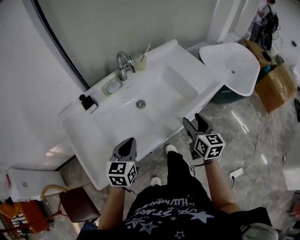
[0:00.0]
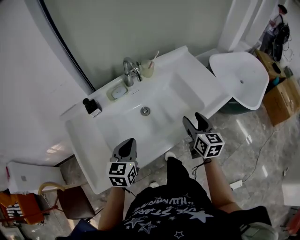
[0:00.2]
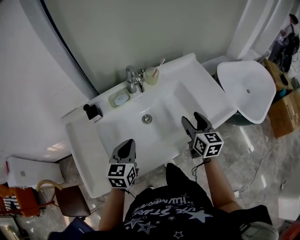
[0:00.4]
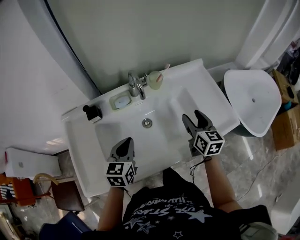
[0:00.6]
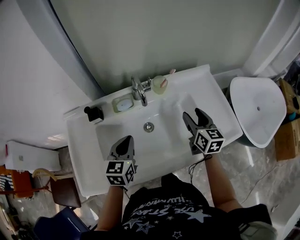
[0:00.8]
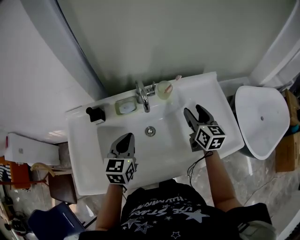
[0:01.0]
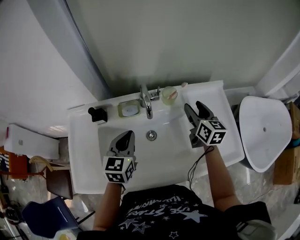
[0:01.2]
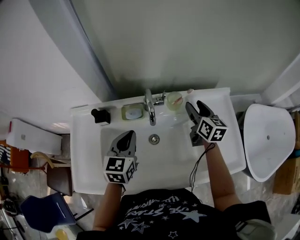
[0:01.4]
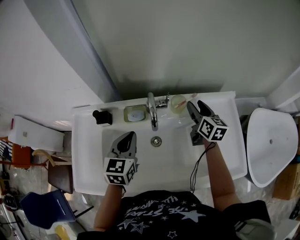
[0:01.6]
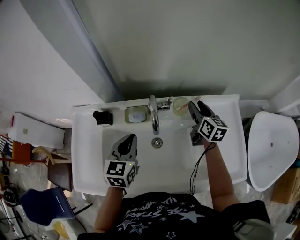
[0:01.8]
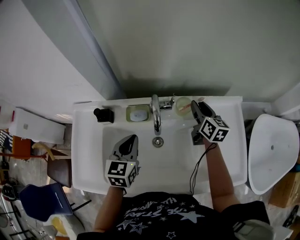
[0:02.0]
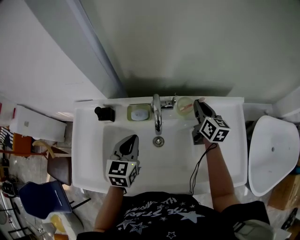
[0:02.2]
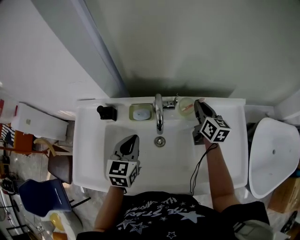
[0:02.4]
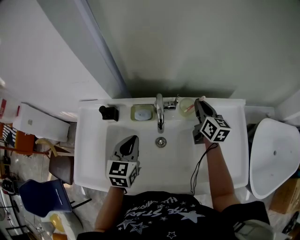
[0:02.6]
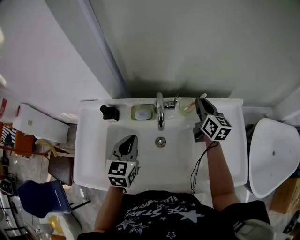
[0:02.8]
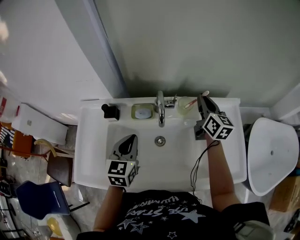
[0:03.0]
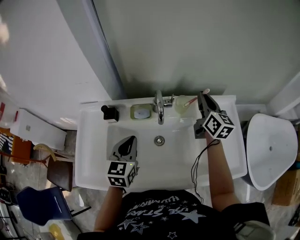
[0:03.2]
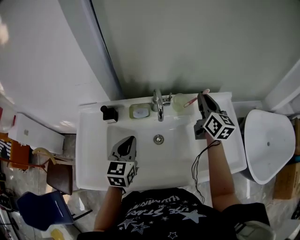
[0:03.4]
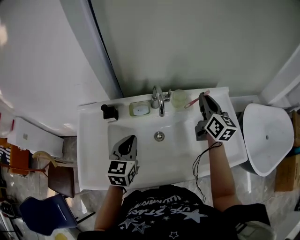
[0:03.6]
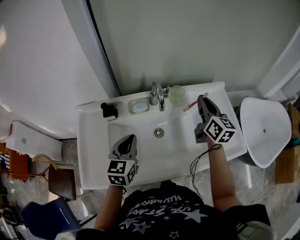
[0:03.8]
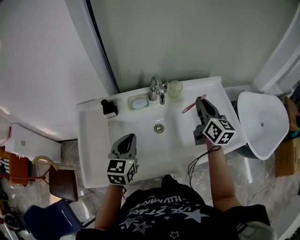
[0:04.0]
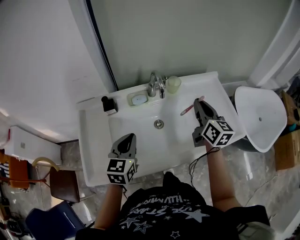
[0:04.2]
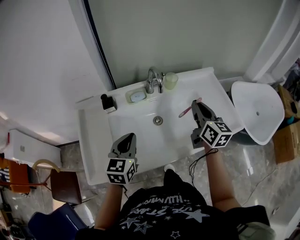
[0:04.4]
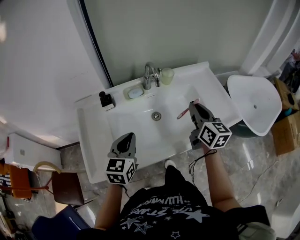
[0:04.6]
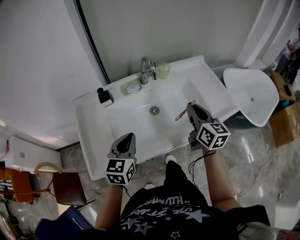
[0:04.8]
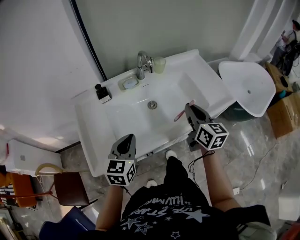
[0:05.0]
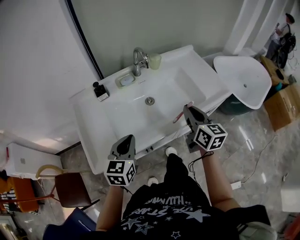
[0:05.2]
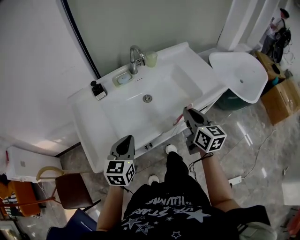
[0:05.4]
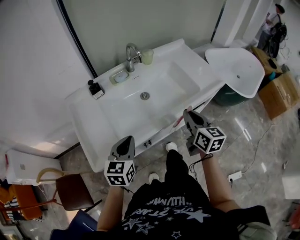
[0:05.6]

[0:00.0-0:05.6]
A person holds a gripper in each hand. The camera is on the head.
0:00.0 to 0:01.4: The left gripper moves roughly 25 cm, and rotates some 30 degrees; the right gripper shifts by approximately 40 cm, and turns by some 30 degrees.
0:01.4 to 0:02.8: The right gripper travels forward by about 5 cm, and closes.
0:02.8 to 0:04.2: The right gripper is displaced backward by approximately 25 cm; the left gripper travels backward by some 10 cm.
0:04.2 to 0:05.6: The left gripper is displaced backward by about 20 cm; the right gripper moves backward, approximately 25 cm.

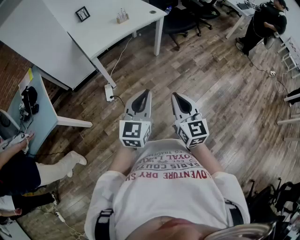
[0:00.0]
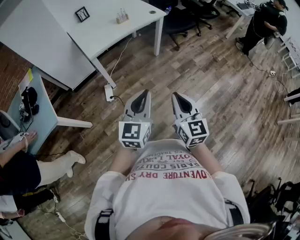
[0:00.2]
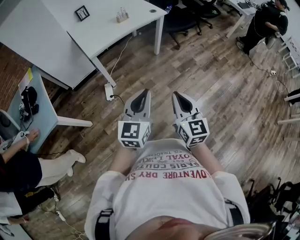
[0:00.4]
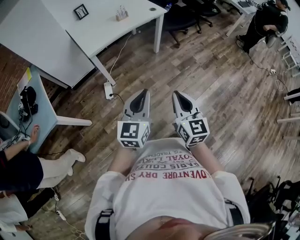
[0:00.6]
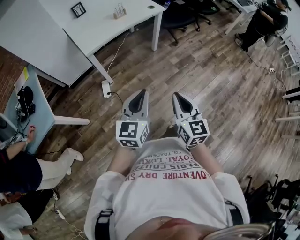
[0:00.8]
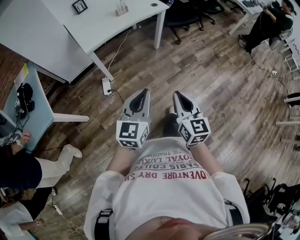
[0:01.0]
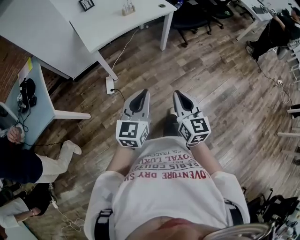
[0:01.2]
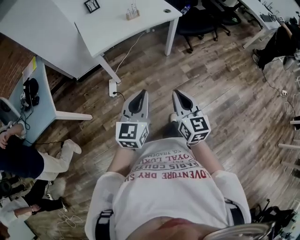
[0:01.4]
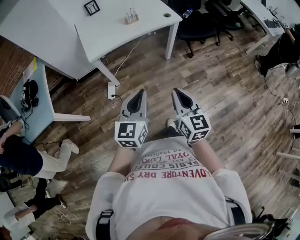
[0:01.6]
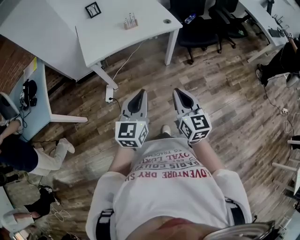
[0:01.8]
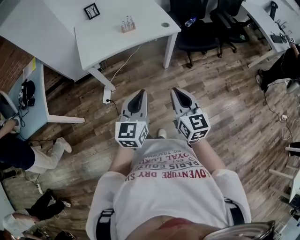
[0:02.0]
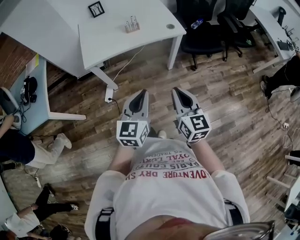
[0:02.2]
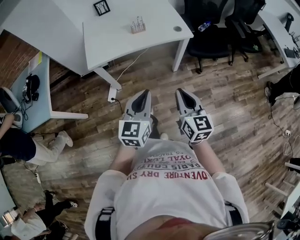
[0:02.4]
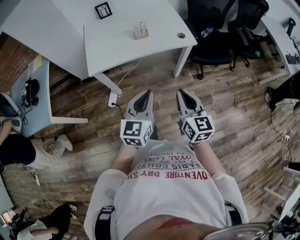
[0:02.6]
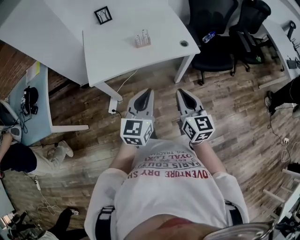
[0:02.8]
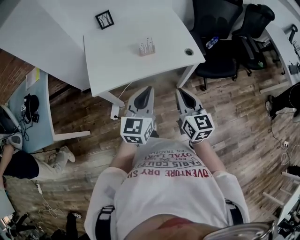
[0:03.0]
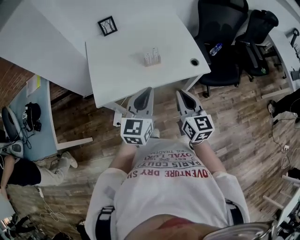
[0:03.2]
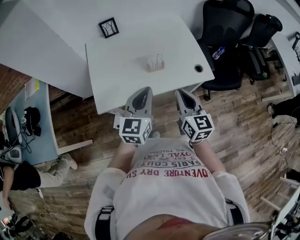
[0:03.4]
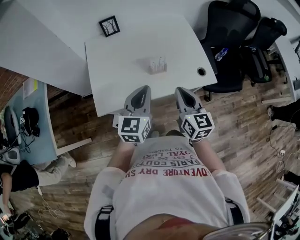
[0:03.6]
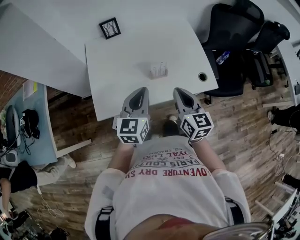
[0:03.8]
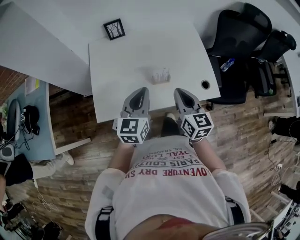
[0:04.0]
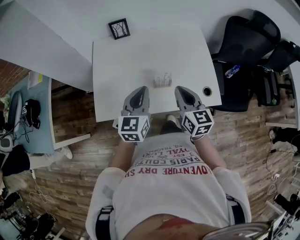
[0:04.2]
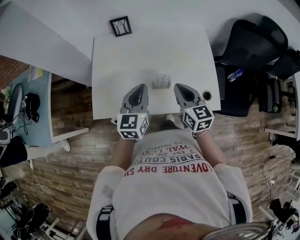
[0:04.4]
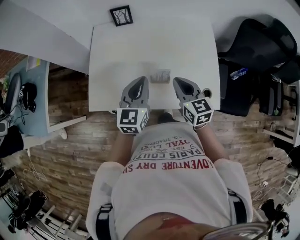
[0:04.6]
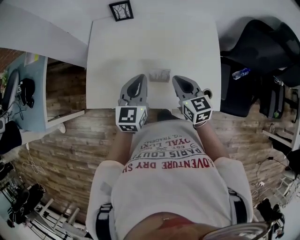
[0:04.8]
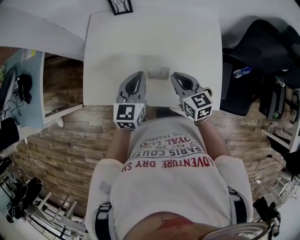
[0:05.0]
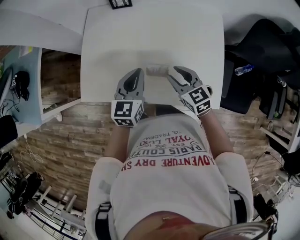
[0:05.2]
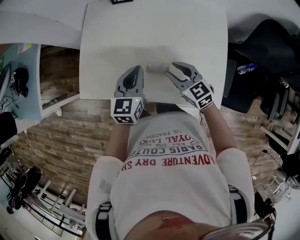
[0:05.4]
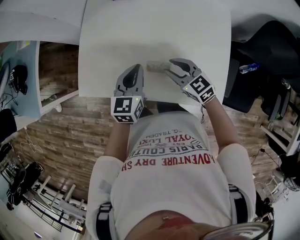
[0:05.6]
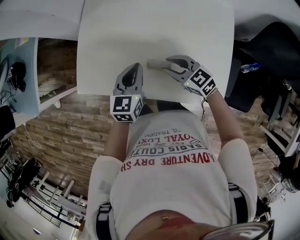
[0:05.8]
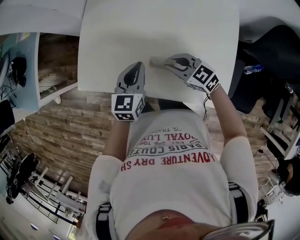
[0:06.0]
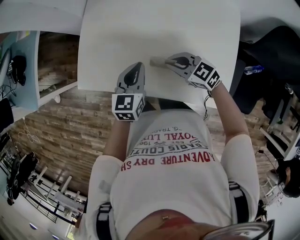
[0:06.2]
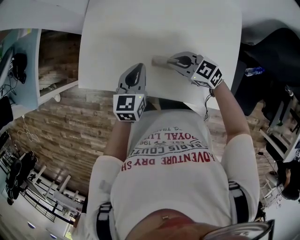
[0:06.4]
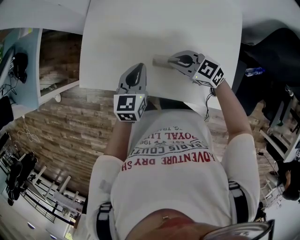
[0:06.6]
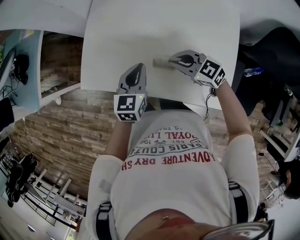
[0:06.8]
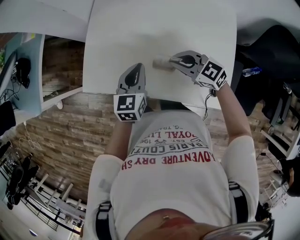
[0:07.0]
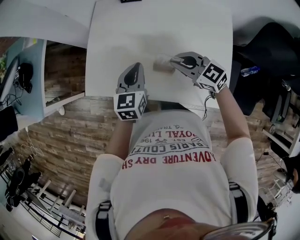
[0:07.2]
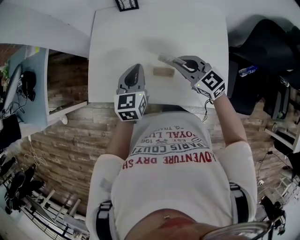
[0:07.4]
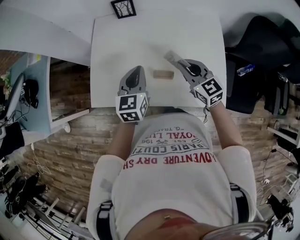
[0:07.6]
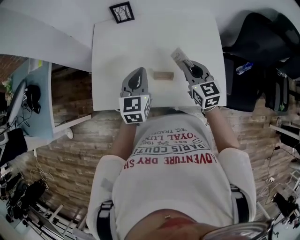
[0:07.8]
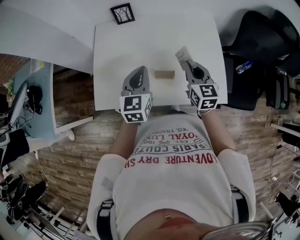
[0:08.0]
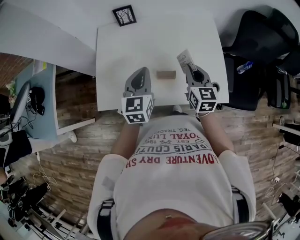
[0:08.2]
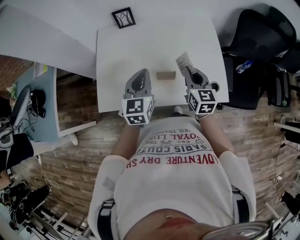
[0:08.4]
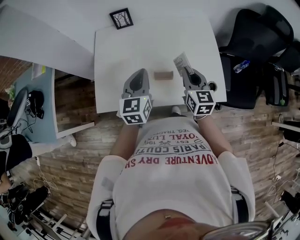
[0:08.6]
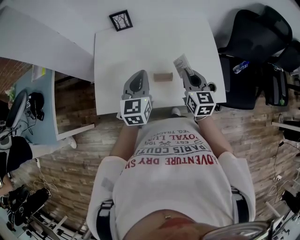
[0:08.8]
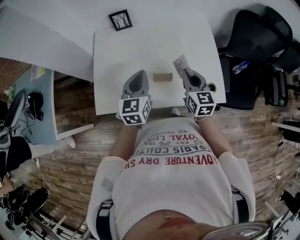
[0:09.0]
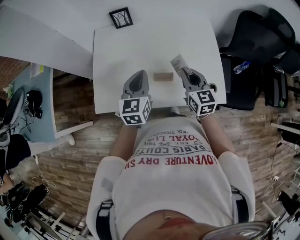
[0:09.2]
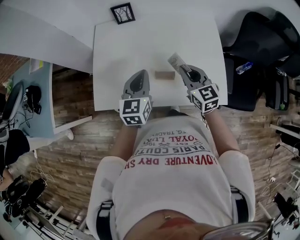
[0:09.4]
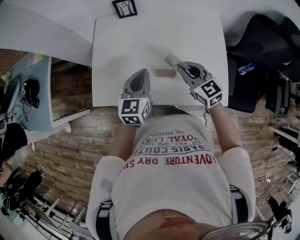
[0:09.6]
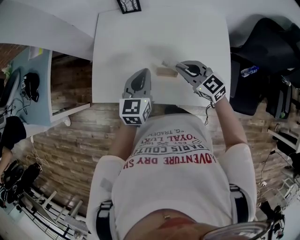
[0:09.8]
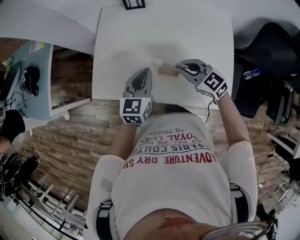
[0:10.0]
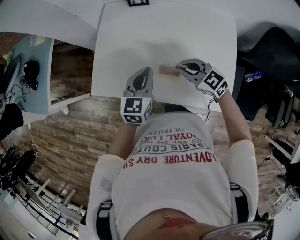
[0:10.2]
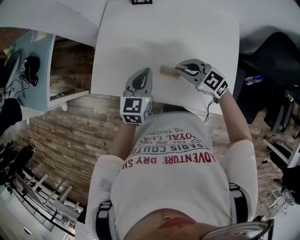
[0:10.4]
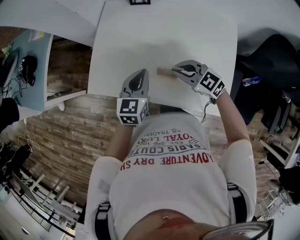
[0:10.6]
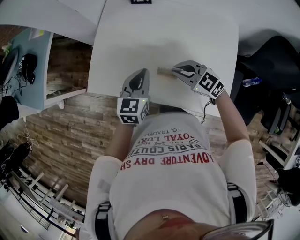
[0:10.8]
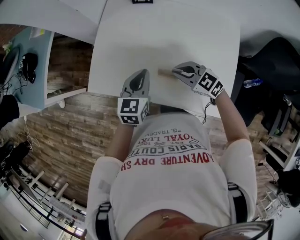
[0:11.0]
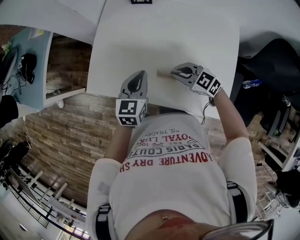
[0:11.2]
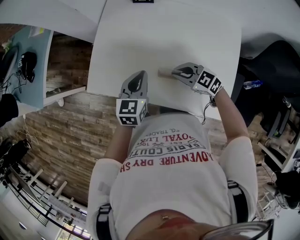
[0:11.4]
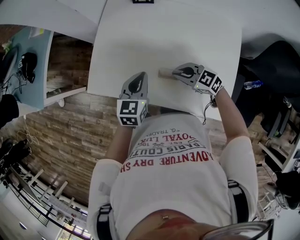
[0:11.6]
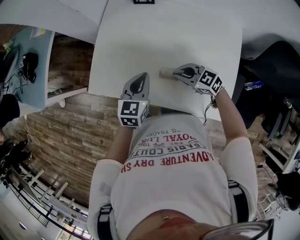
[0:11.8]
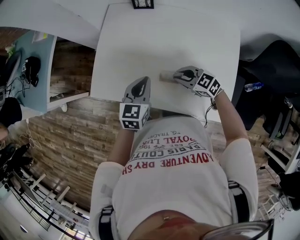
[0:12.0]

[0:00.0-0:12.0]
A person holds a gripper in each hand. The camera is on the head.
0:00.0 to 0:01.6: The left gripper moves forward, roughly 15 cm. Meanwhile the right gripper moves forward and to the right, some 20 cm.
0:01.6 to 0:03.0: Both grippers travel together forward, roughly 35 cm.
0:03.0 to 0:04.4: Both grippers travel together forward, approximately 30 cm. The right gripper rotates some 20 degrees.
0:04.4 to 0:06.0: The grippers both shift downward by approximately 15 cm. The right gripper swivels roughly 60 degrees.
0:06.0 to 0:07.6: The grippers both shift upward by about 10 cm. The right gripper turns by about 40 degrees.
0:07.6 to 0:09.0: The right gripper changes place by about 5 cm, and swivels approximately 30 degrees.
0:09.0 to 0:10.4: The left gripper shifts about 5 cm downward. Meanwhile the right gripper shifts by about 10 cm, and swivels about 70 degrees.
0:10.4 to 0:12.0: The right gripper moves downward, about 5 cm.

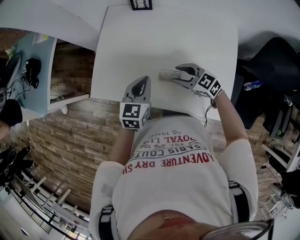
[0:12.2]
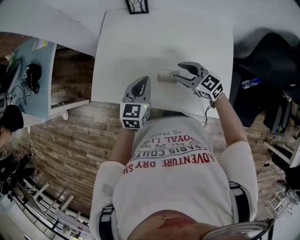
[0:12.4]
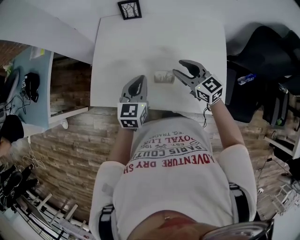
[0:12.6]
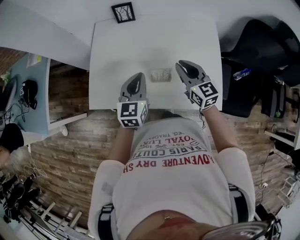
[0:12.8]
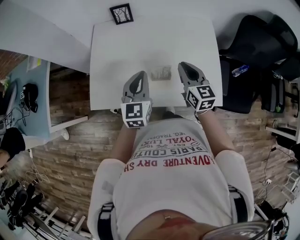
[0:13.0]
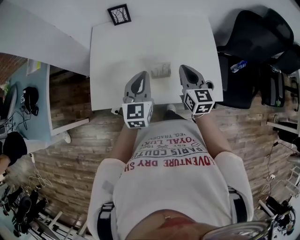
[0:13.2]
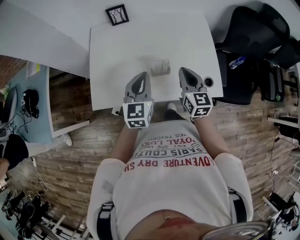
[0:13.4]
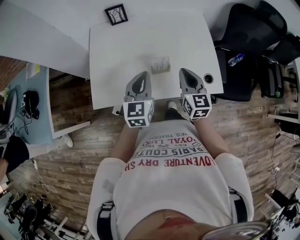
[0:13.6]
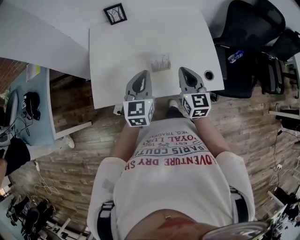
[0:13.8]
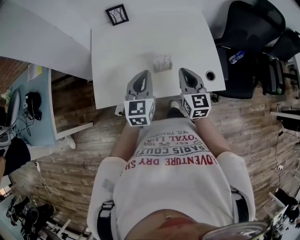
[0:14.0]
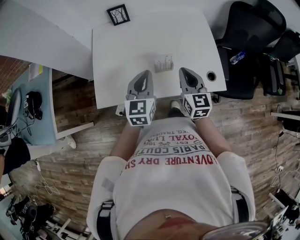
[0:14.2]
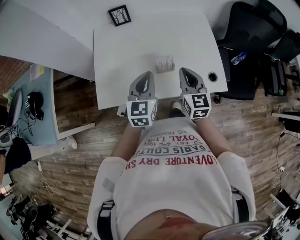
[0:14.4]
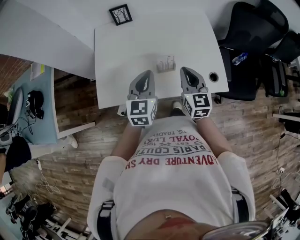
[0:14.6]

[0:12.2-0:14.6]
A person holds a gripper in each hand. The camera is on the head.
0:12.2 to 0:13.4: The right gripper moves upward, roughly 10 cm, changes its angle by about 70 degrees, and closes up. Meanwhile the left gripper shifts about 5 cm upward.
0:13.4 to 0:14.6: The grippers make only small movements.

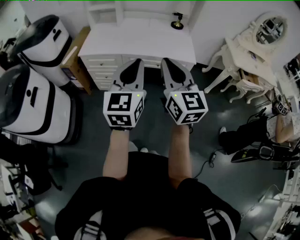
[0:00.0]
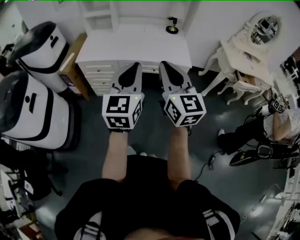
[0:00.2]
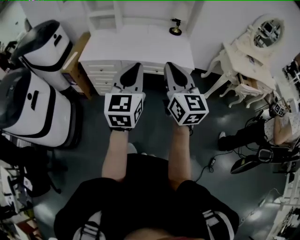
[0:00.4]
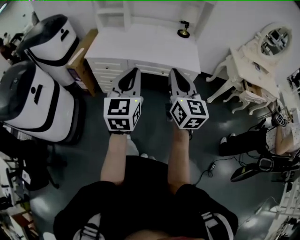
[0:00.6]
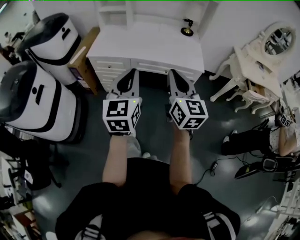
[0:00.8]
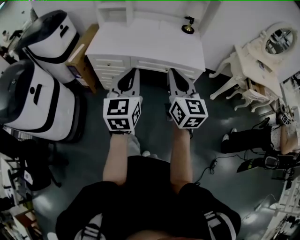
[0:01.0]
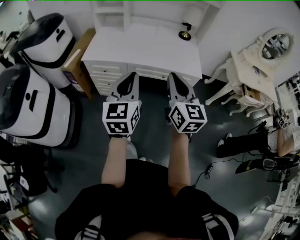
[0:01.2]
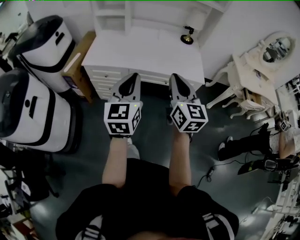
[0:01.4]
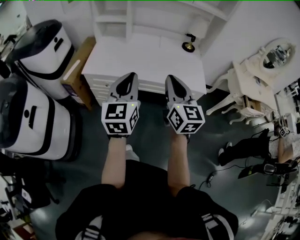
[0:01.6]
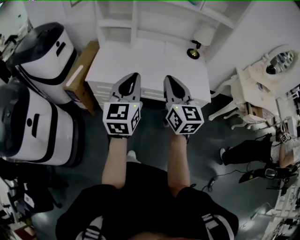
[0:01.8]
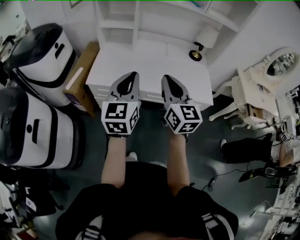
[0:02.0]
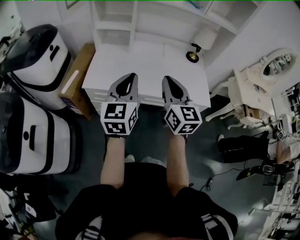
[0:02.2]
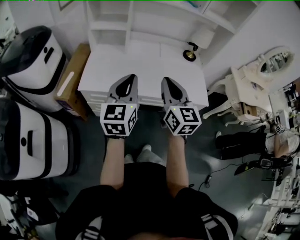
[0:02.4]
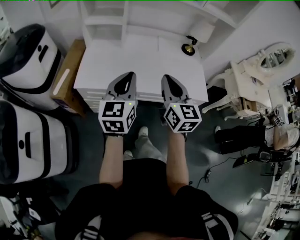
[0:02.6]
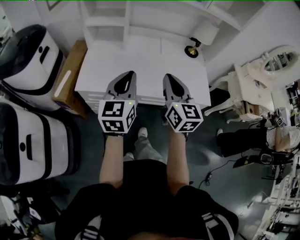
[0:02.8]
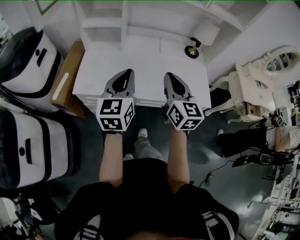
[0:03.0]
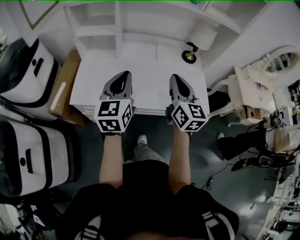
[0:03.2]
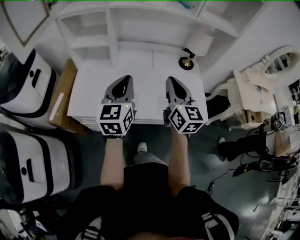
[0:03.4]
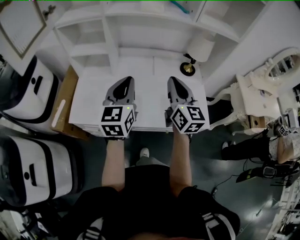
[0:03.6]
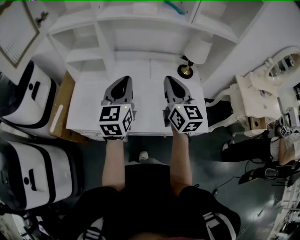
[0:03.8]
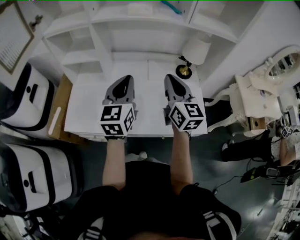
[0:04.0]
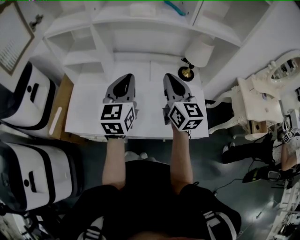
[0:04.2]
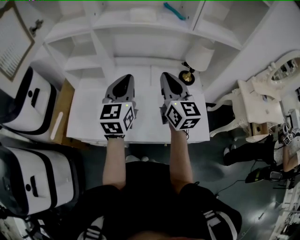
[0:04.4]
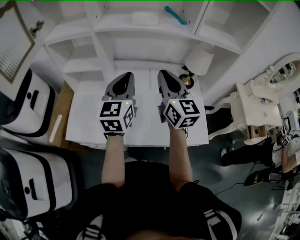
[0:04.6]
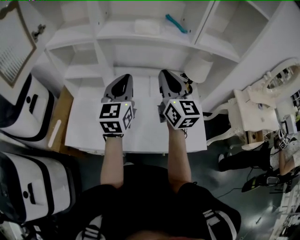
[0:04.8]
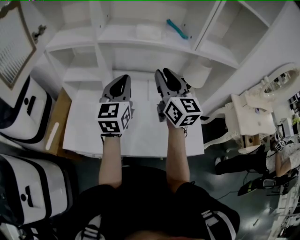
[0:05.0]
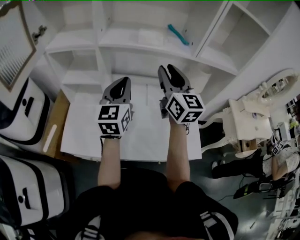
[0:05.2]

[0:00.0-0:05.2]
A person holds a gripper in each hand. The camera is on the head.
0:00.0 to 0:01.8: The grippers both shift forward and to the left by approximately 25 cm.
0:01.8 to 0:03.4: The grippers both shift forward by about 25 cm.
0:03.4 to 0:05.2: The right gripper travels forward and upward by approximately 25 cm, and opens its fingers. Meanwhile the left gripper travels forward by about 20 cm.
